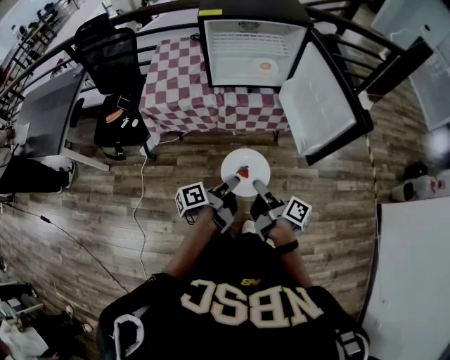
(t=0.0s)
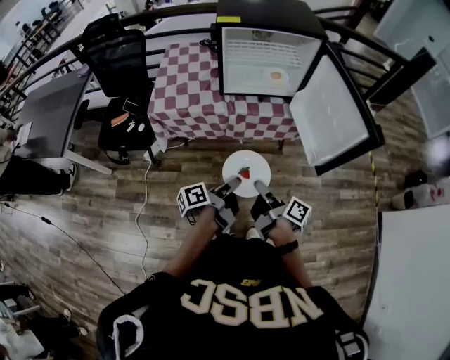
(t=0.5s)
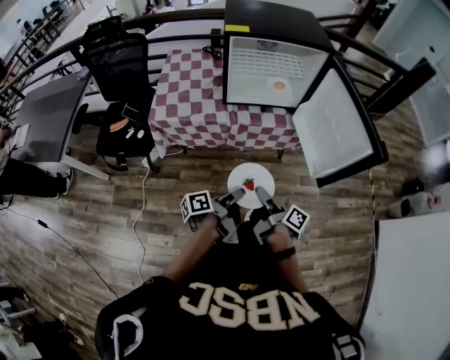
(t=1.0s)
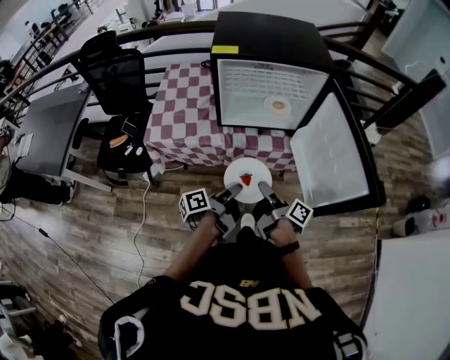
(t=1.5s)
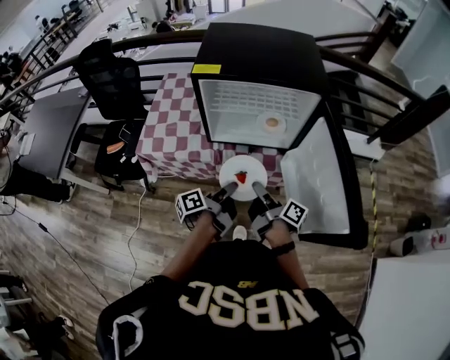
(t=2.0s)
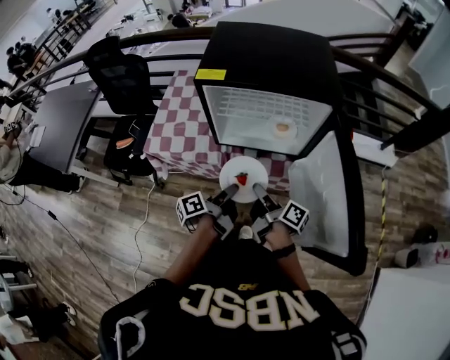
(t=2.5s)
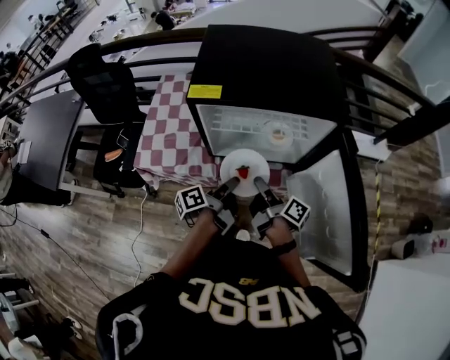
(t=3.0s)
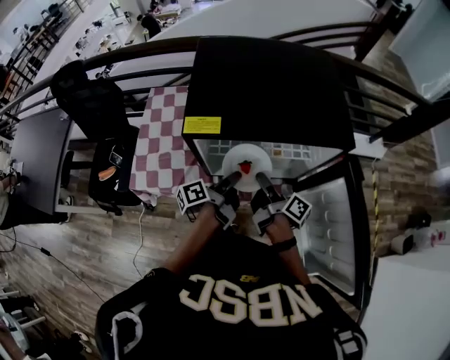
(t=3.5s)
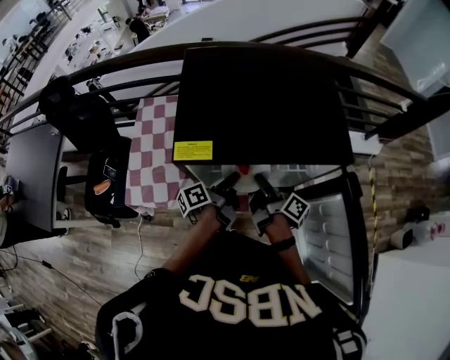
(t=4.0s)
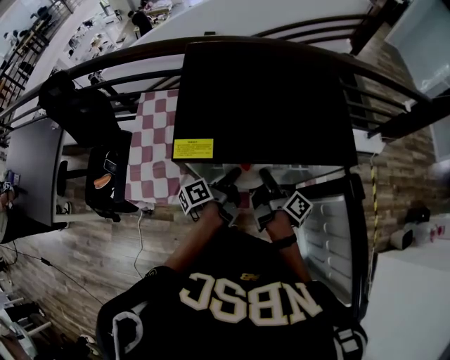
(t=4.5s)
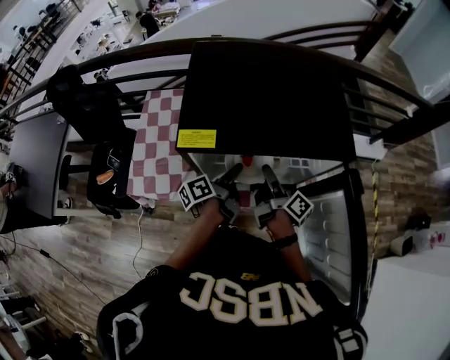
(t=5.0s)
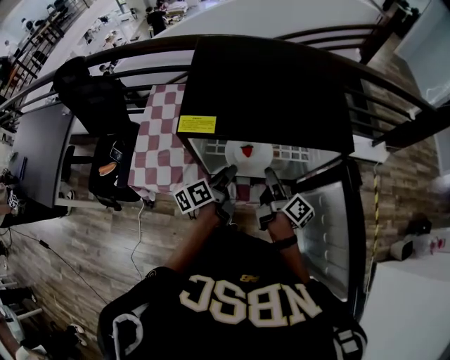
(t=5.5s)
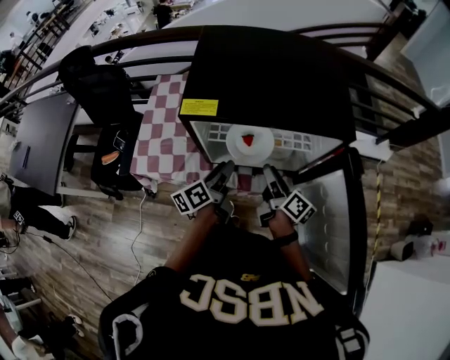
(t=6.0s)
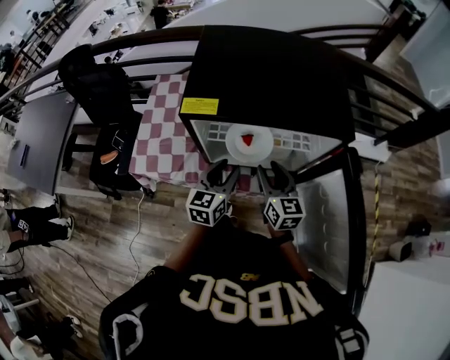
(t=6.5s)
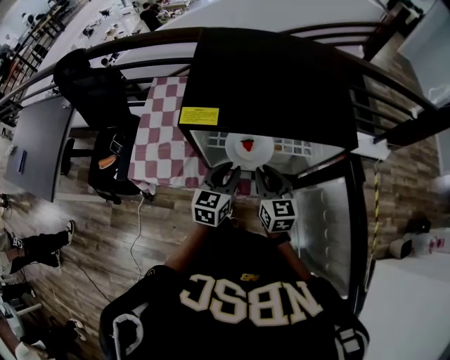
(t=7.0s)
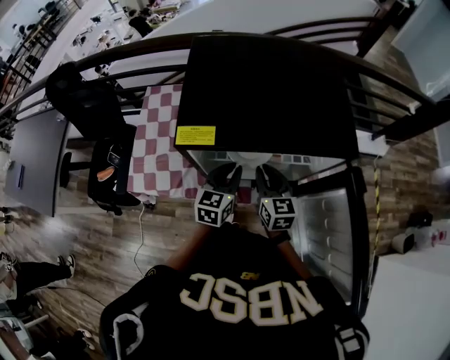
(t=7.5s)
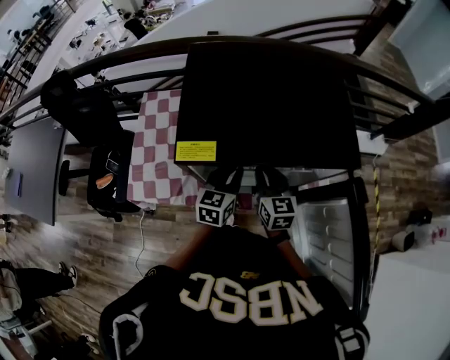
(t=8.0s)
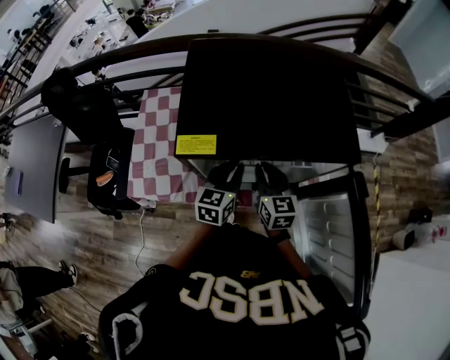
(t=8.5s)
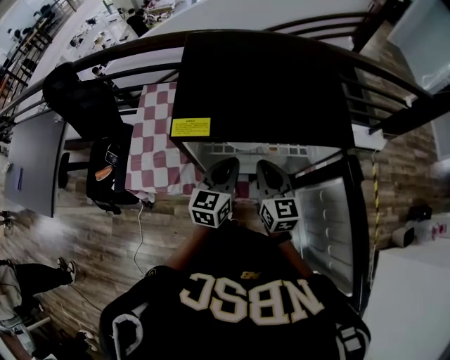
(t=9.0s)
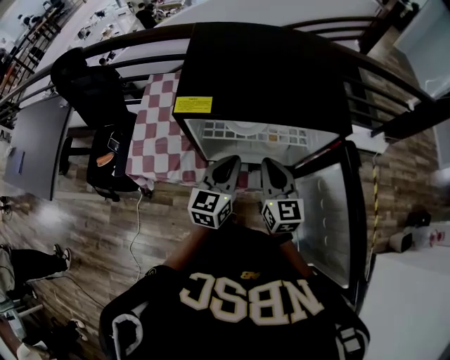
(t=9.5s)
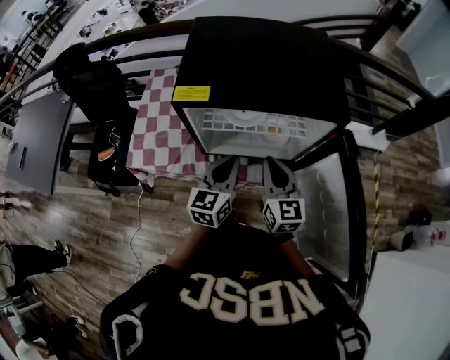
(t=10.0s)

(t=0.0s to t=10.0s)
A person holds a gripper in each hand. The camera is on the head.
t=0.0s - t=2.0s: The two grippers go approximately 30 cm forward.
t=2.0s - t=4.0s: Both grippers travel together forward, roughly 25 cm.
t=4.0s - t=6.0s: The left gripper shifts approximately 5 cm backward, swivels approximately 30 degrees, and opens its fingers. The right gripper shifts by approximately 5 cm, turns by approximately 20 degrees, and opens.
t=6.0s - t=8.0s: Both grippers travel together forward, approximately 10 cm. The left gripper rolls clockwise, seen from behind, by about 50 degrees, and closes. Meanwhile the right gripper twists roughly 50 degrees counterclockwise, seen from behind, and closes.
t=8.0s - t=10.0s: Both grippers travel together backward and upward, about 15 cm.

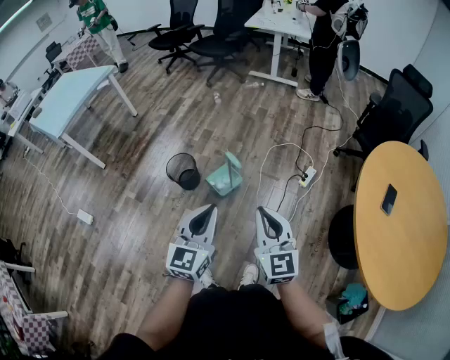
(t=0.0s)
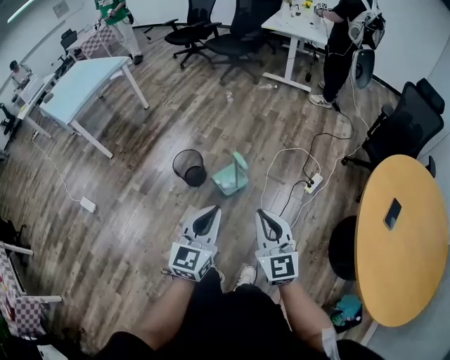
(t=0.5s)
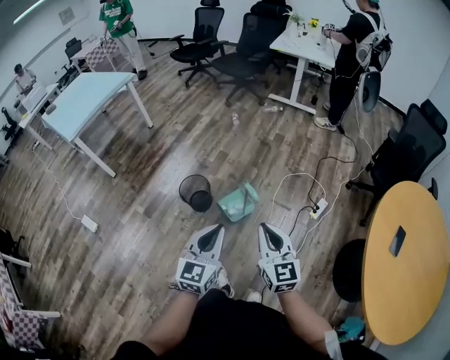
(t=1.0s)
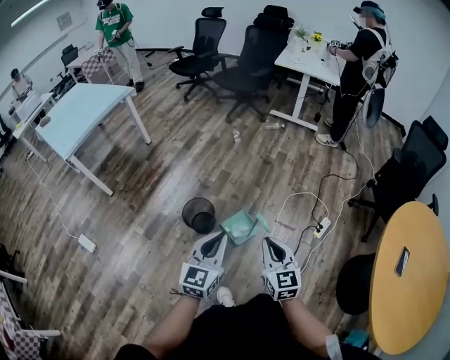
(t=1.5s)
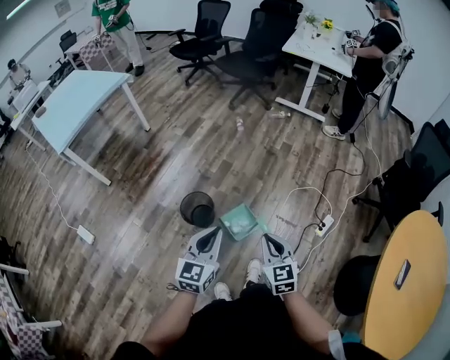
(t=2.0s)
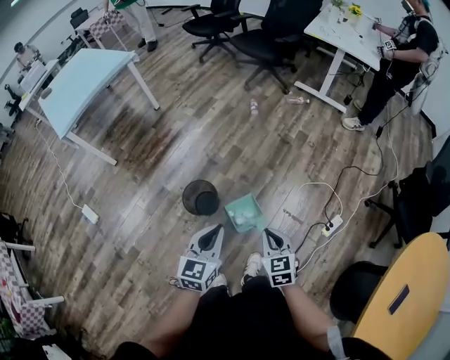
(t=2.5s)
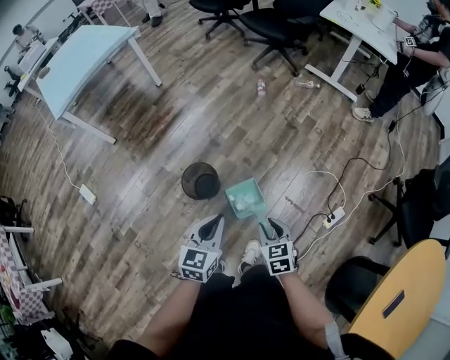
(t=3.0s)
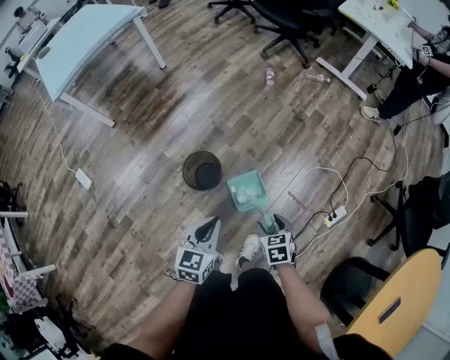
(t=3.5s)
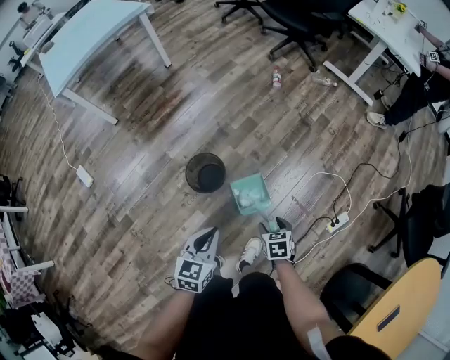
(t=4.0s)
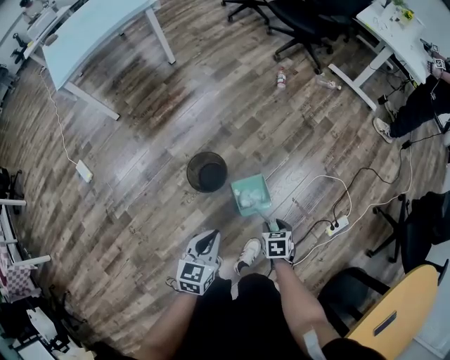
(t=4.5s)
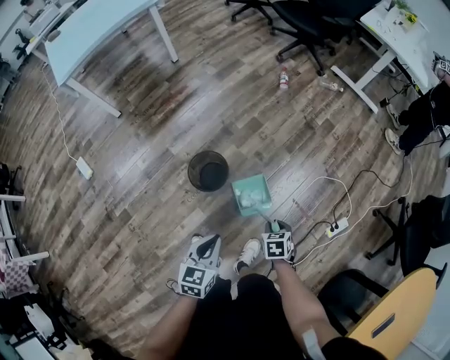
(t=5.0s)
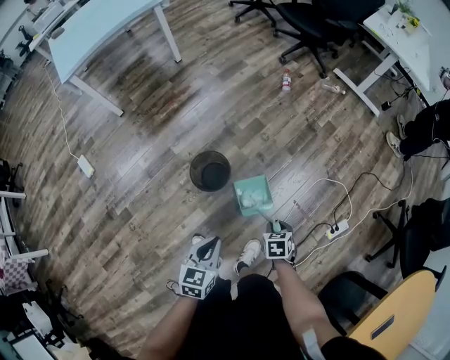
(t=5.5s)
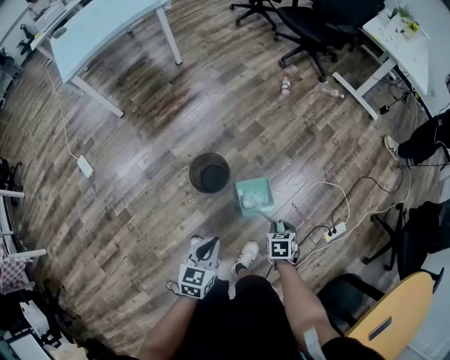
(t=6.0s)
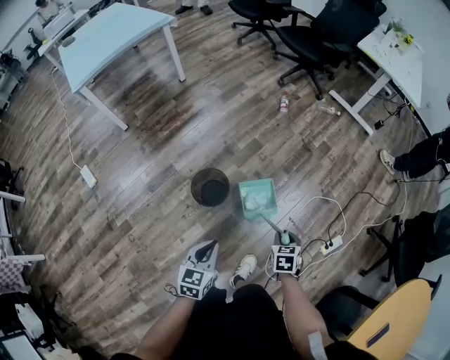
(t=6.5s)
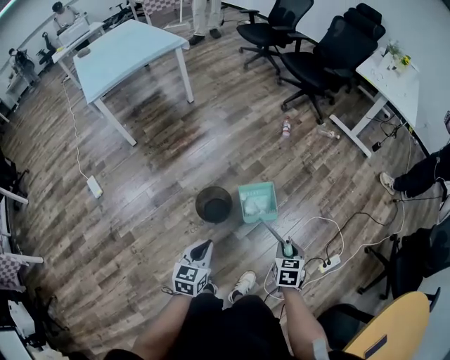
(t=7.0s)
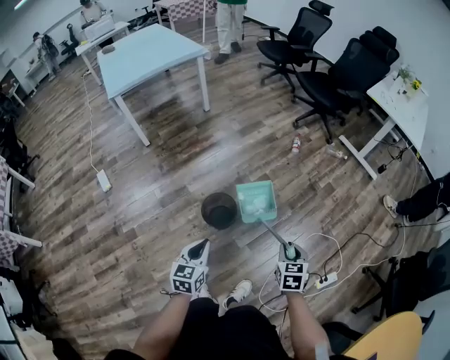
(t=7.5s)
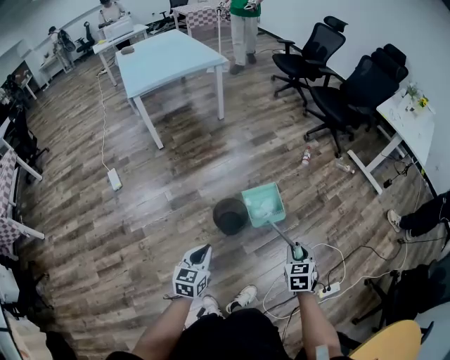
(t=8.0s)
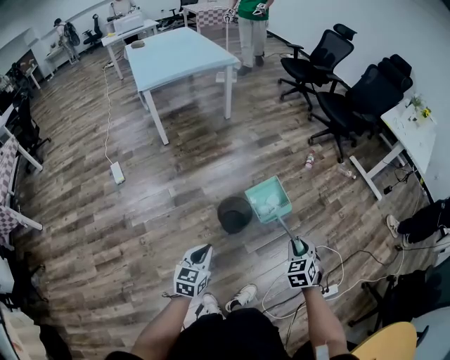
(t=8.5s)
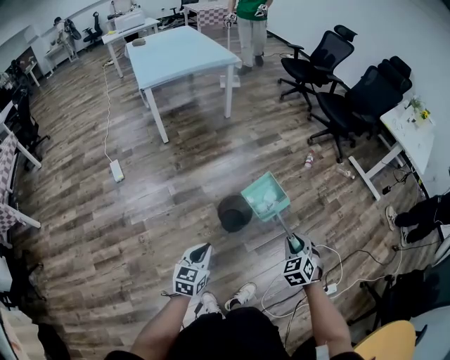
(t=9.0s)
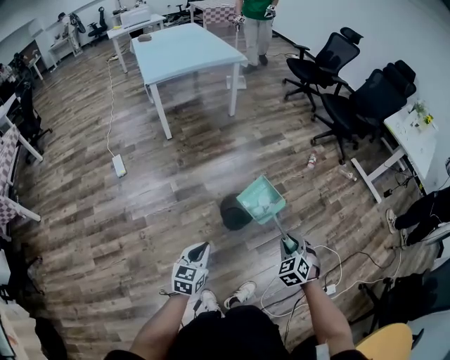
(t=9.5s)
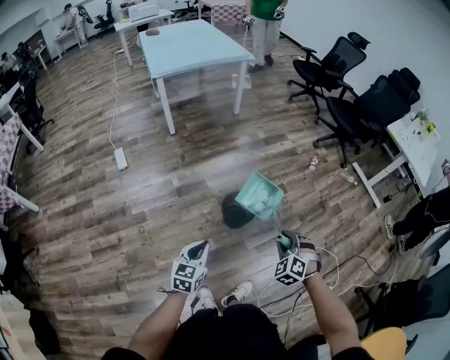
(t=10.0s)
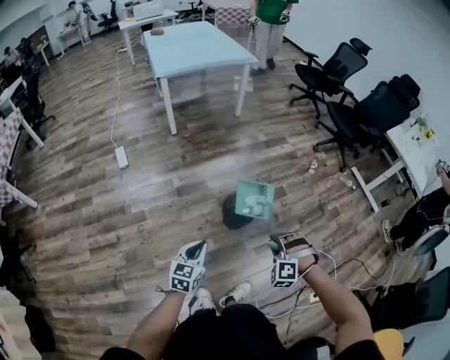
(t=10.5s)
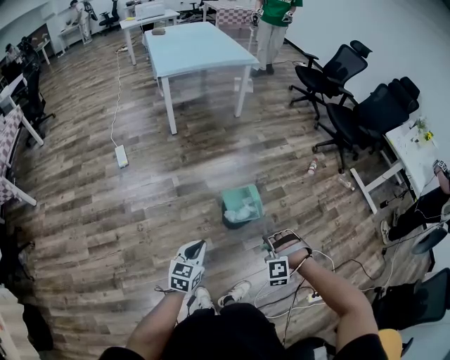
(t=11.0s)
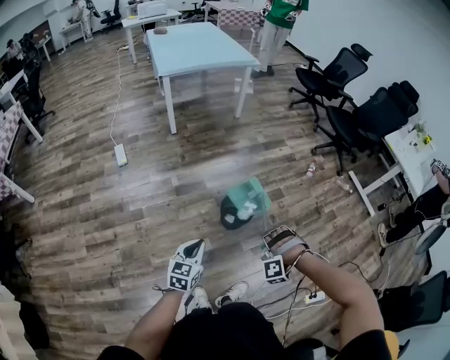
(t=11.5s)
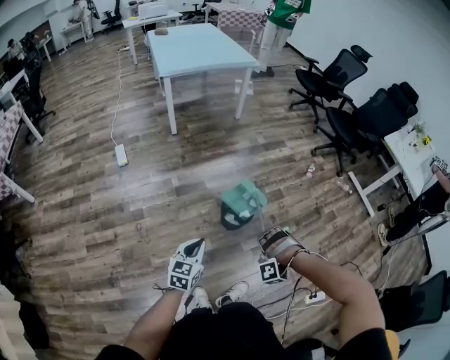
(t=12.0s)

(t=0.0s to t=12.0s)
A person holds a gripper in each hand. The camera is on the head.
t=0.0s - t=2.0s: The left gripper travels forward and to the left by about 30 cm. Meanwhile the right gripper is displaced forward, downward and to the left by some 30 cm, and changes its angle by about 20 degrees.
t=2.0s - t=4.0s: The left gripper heads downward, covering approximately 15 cm, and turns by roughly 20 degrees; the right gripper is displaced downward and forward by roughly 30 cm, points its fingers about 40 degrees further downward, and opens.
t=4.0s - t=6.0s: The right gripper closes its fingers.
t=6.0s - t=8.0s: The right gripper is displaced upward by approximately 20 cm, and rotates roughly 30 degrees. The left gripper travels to the left and upward by about 15 cm.
t=8.0s - t=10.0s: The left gripper travels to the left and backward by some 10 cm, while the right gripper is displaced to the left by some 15 cm, and rolls counterclockwise, seen from behind, by approximately 50 degrees.
t=10.0s - t=12.0s: The right gripper heads to the left, covering approximately 5 cm, and twists roughly 70 degrees counterclockwise, seen from behind.

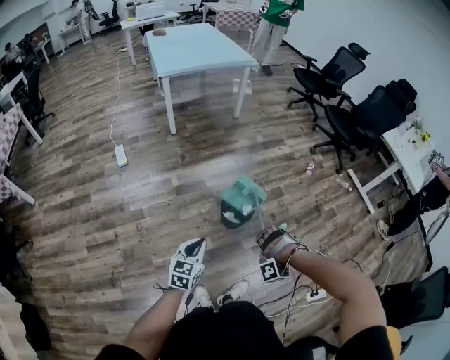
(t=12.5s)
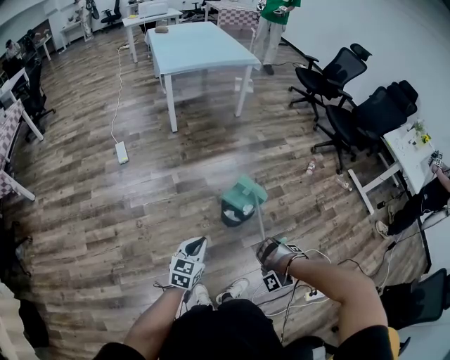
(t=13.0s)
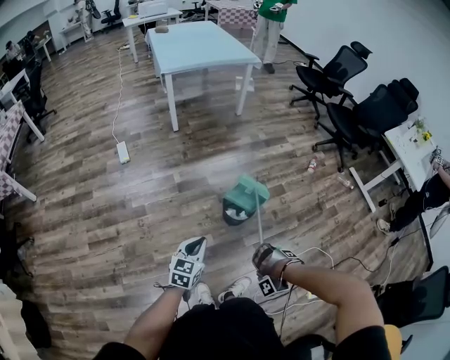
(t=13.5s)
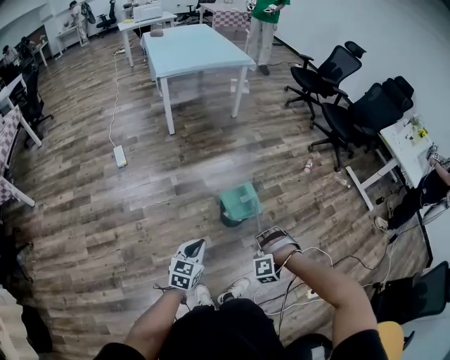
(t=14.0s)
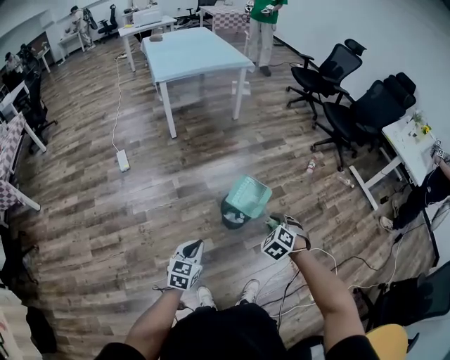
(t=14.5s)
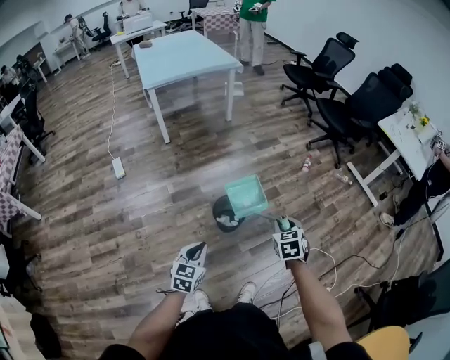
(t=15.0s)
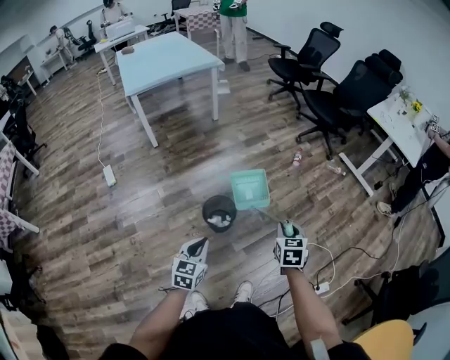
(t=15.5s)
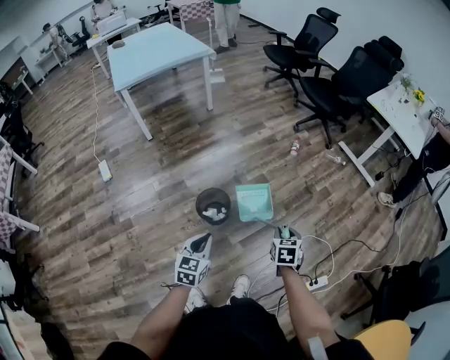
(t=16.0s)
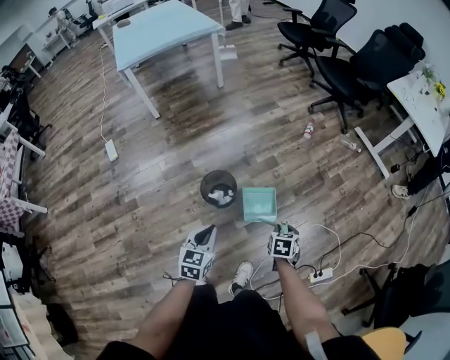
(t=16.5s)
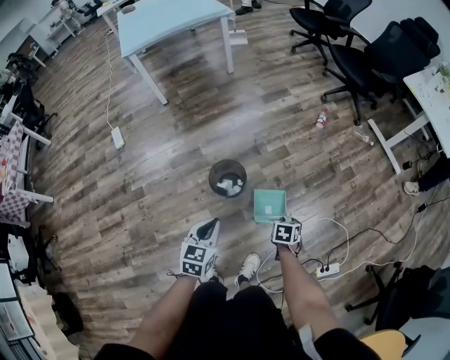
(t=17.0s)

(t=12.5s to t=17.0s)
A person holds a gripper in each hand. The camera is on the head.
t=12.5s - t=14.5s: The right gripper travels forward by approximately 5 cm, and rolls clockwise, seen from behind, by some 90 degrees.
t=14.5s - t=17.0s: The left gripper is displaced to the right and forward by some 25 cm. Meanwhile the right gripper moves to the right and downward, about 30 cm, and rotates around the line of its fingers by roughly 60 degrees, clockwise from behind.
